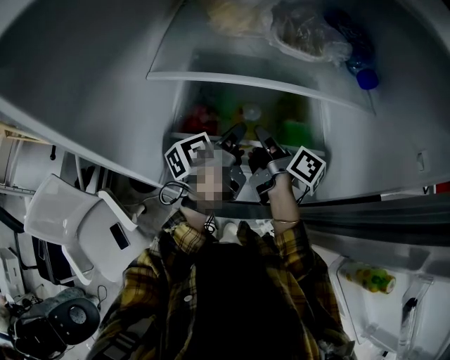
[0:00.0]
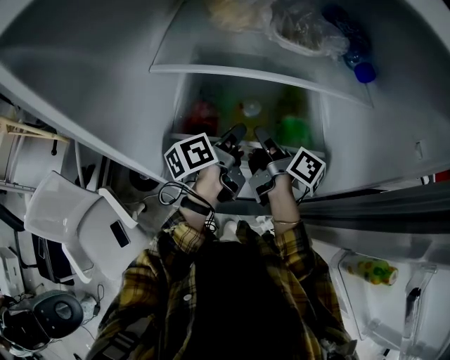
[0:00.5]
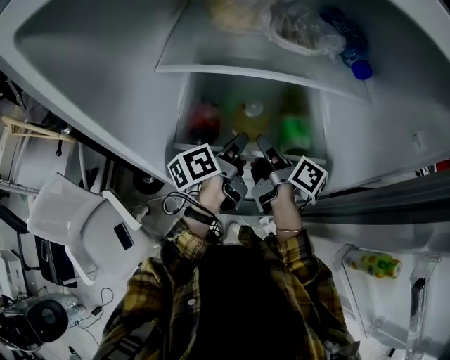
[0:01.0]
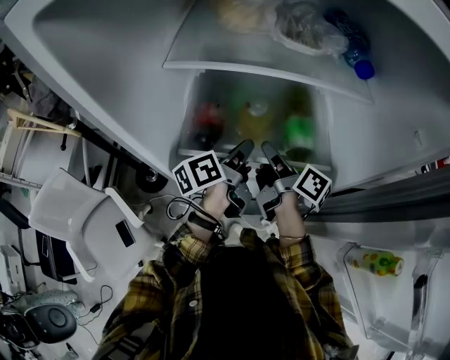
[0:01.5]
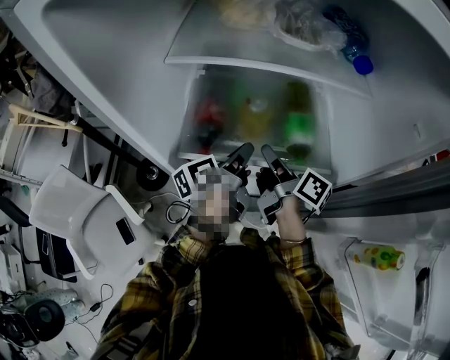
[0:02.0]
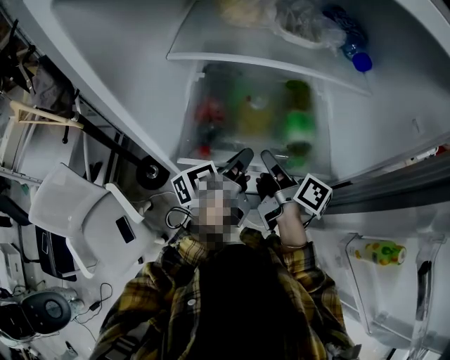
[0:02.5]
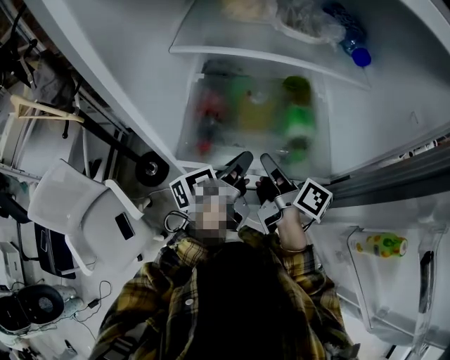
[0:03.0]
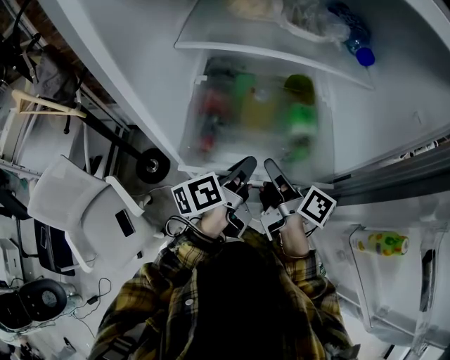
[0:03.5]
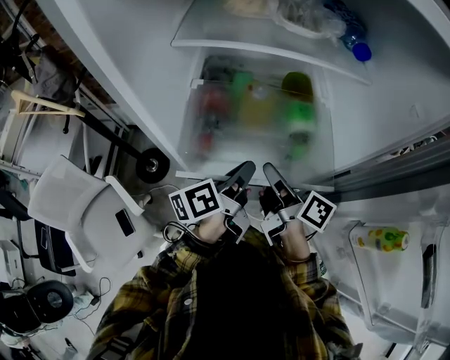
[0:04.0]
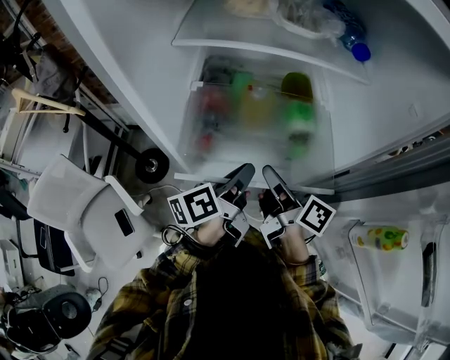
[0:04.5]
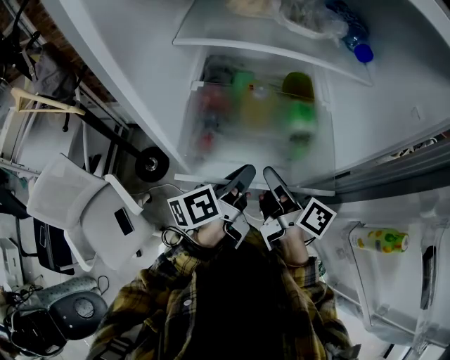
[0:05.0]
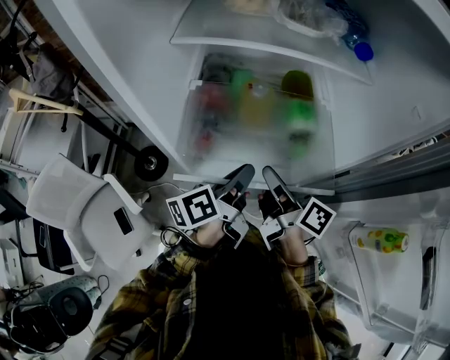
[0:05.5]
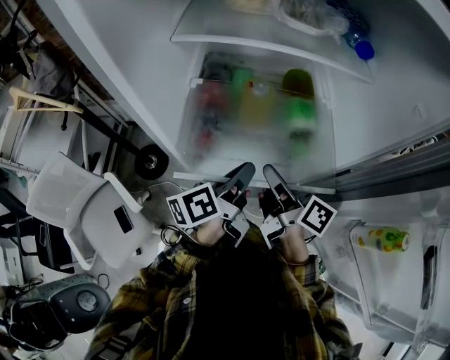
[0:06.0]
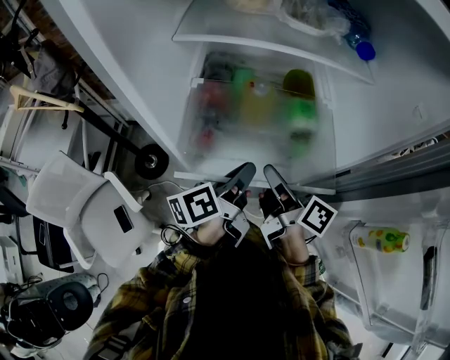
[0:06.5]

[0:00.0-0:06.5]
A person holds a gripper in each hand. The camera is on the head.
0:00.0 to 0:02.0: Both grippers move backward, roughly 10 cm.
0:02.0 to 0:04.5: The two grippers go about 10 cm backward.
0:04.5 to 0:06.5: Neither gripper changes place.

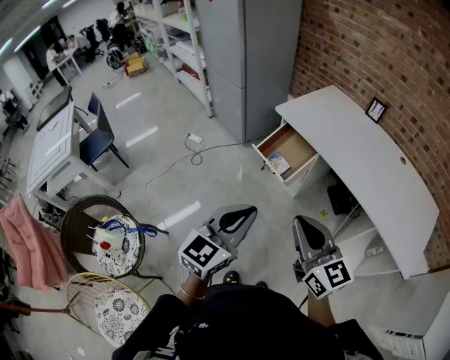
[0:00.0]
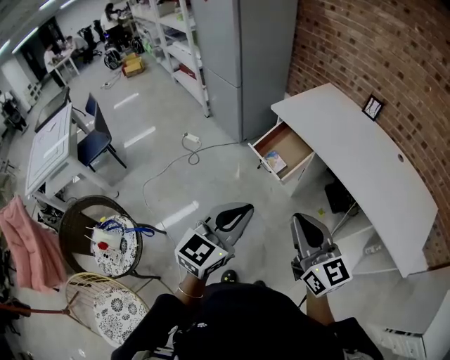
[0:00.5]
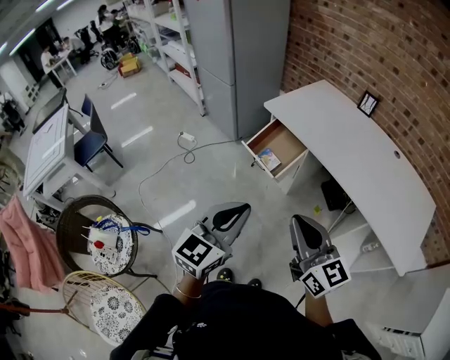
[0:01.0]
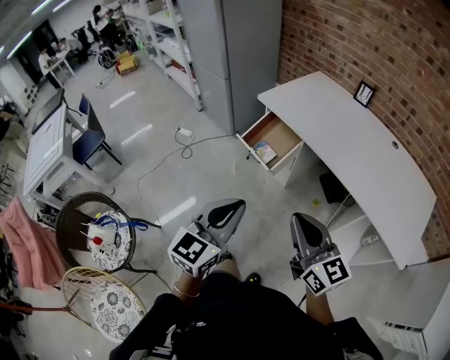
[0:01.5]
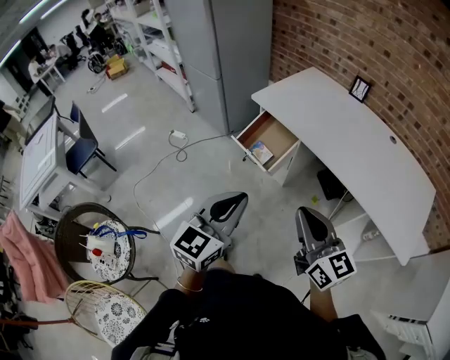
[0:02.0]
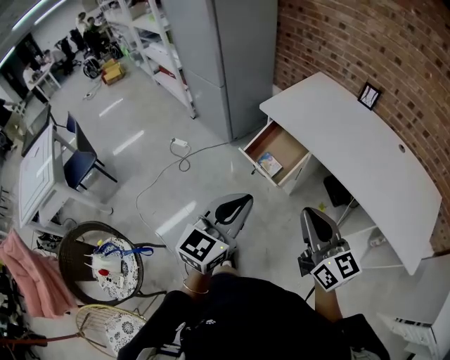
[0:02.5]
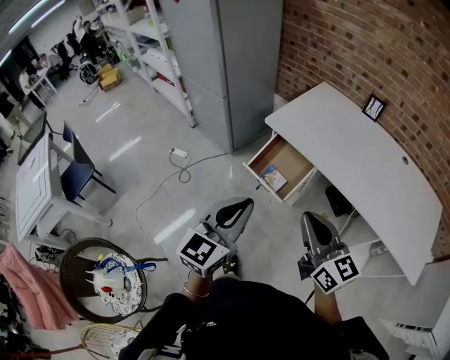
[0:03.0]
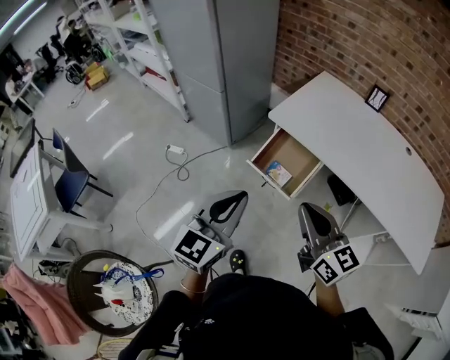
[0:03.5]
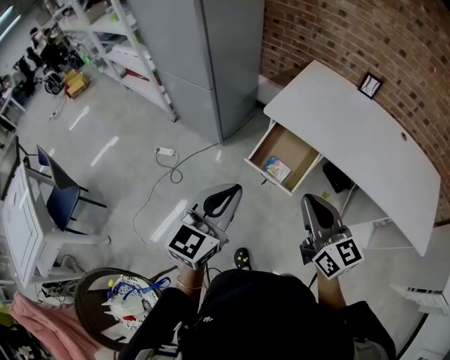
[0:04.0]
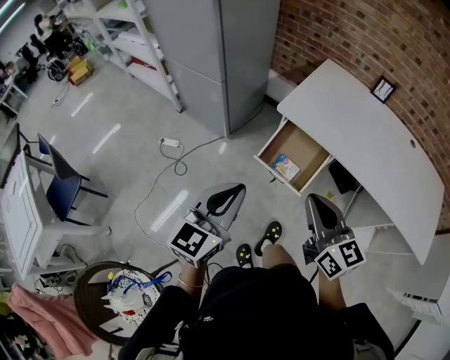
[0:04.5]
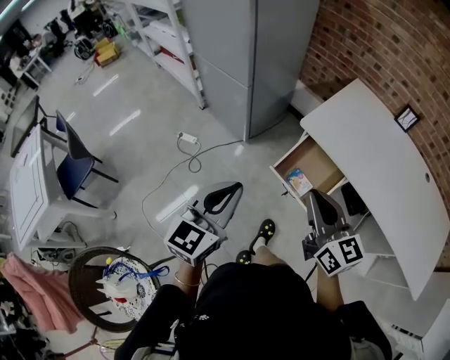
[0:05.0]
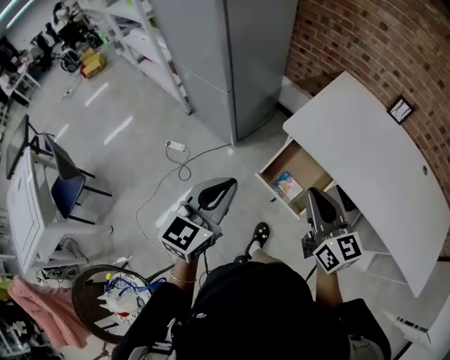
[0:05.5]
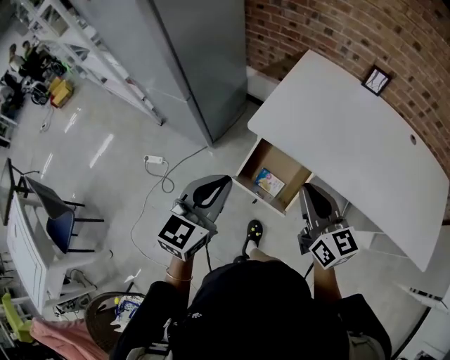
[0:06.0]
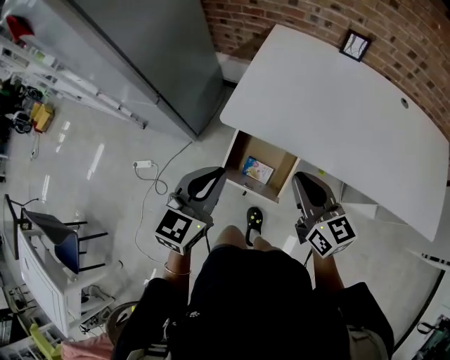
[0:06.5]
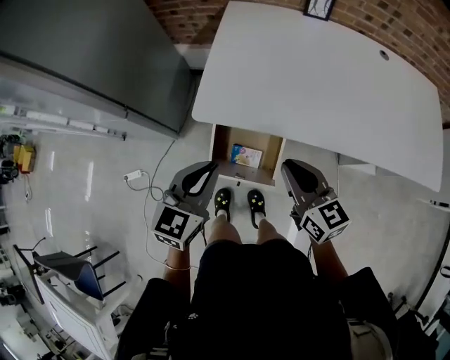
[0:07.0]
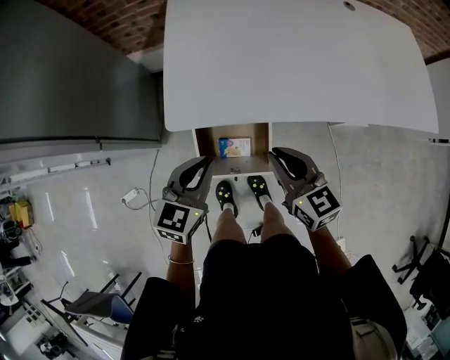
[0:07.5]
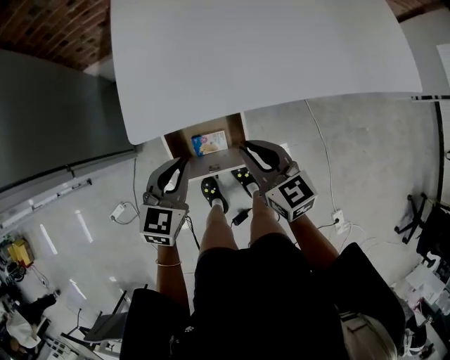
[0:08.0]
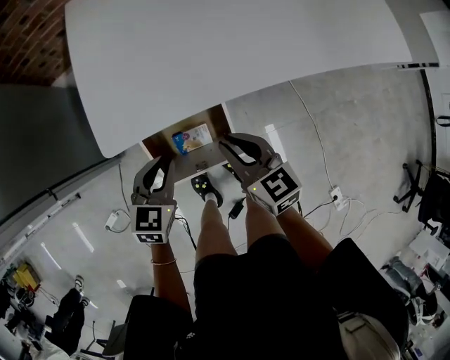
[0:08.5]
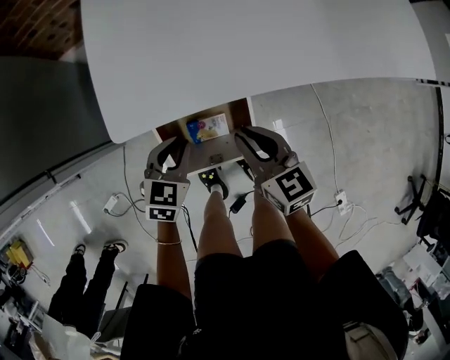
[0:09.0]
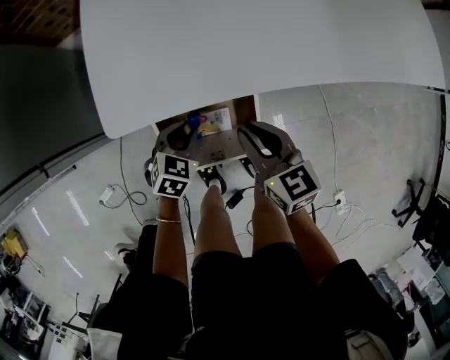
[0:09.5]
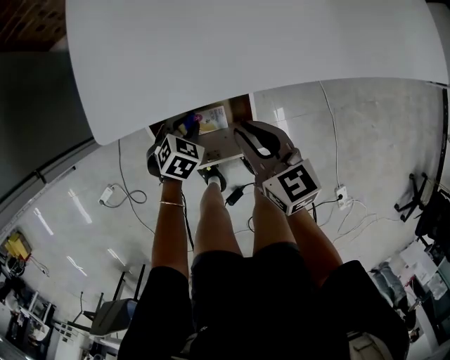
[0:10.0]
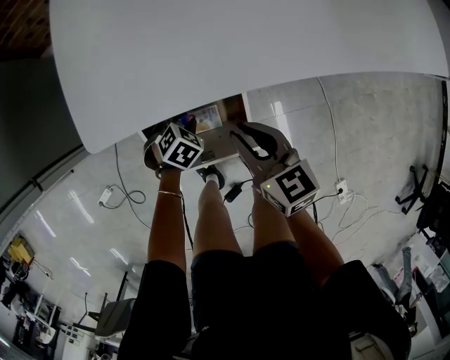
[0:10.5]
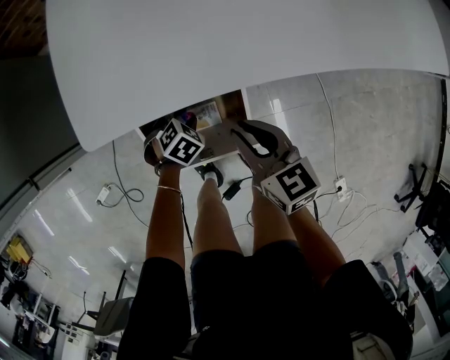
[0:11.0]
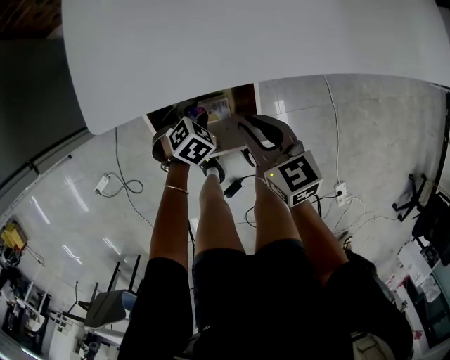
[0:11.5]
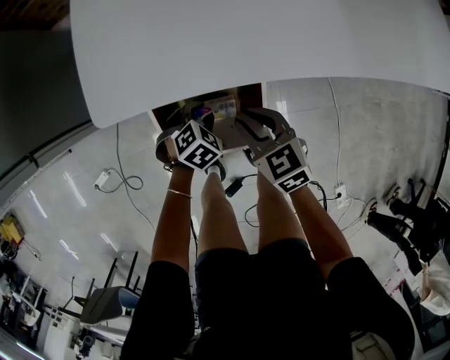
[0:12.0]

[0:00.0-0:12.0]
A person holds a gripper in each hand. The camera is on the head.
0:00.0 to 0:02.0: The right gripper travels to the right by some 10 cm, while the left gripper heads to the right, covering approximately 5 cm.
0:02.0 to 0:04.0: The two grippers go approximately 30 cm forward and to the left.
0:04.0 to 0:06.0: Both grippers travel together forward, roughly 20 cm.
0:06.0 to 0:08.0: The grippers both shift downward by about 20 cm. The left gripper rotates approximately 40 degrees. The right gripper turns by roughly 30 degrees.
0:08.0 to 0:10.0: The right gripper shifts roughly 10 cm downward; the left gripper is displaced downward by about 30 cm, and points its fingers some 30 degrees further downward.
0:10.0 to 0:12.0: The right gripper travels downward by some 5 cm, and swivels about 20 degrees.

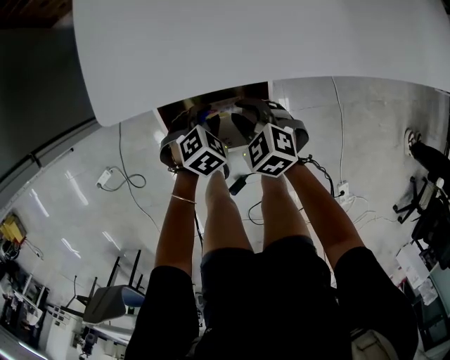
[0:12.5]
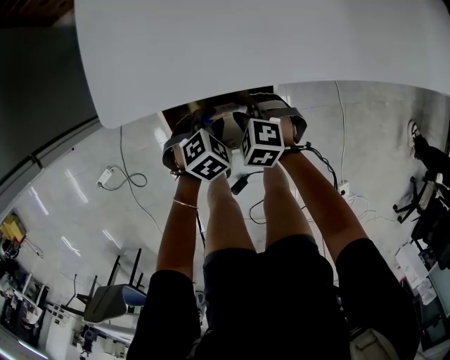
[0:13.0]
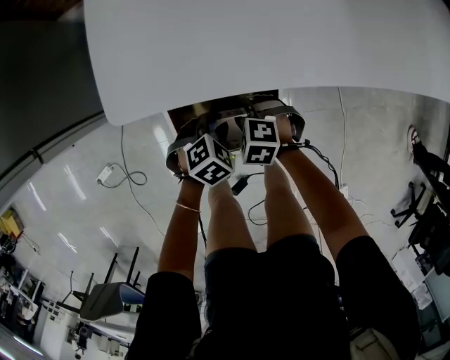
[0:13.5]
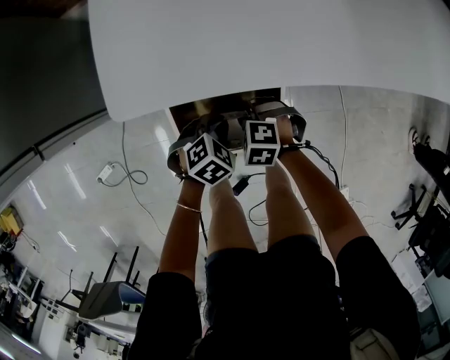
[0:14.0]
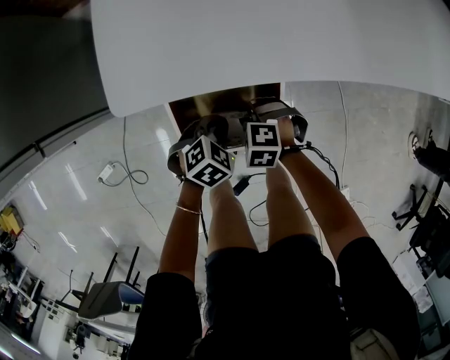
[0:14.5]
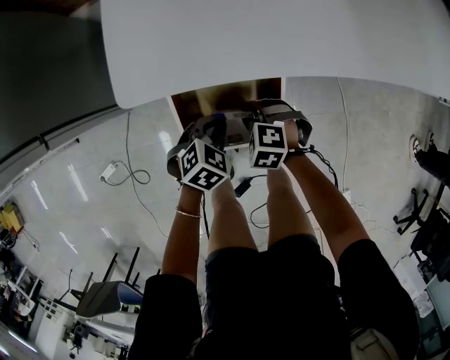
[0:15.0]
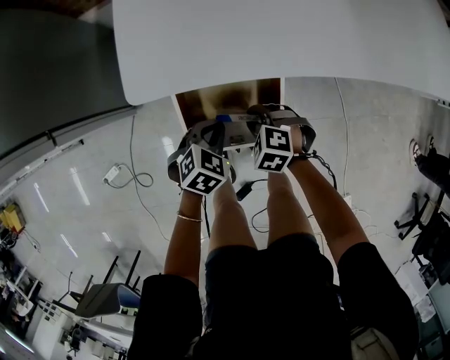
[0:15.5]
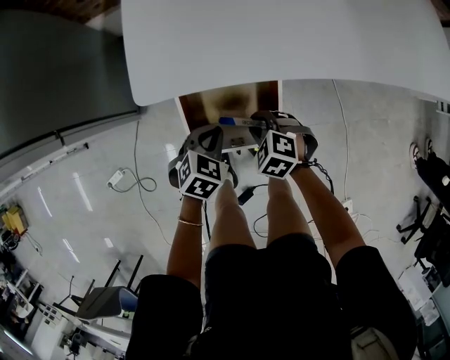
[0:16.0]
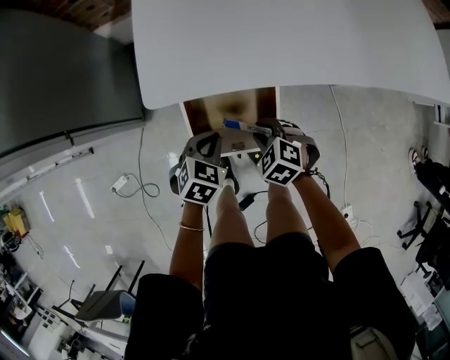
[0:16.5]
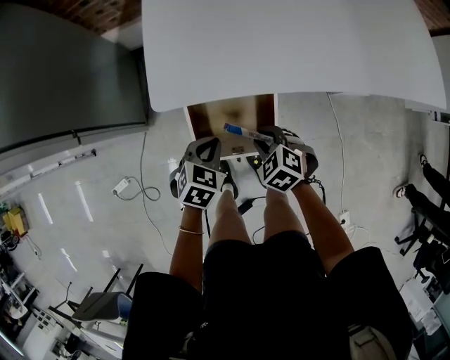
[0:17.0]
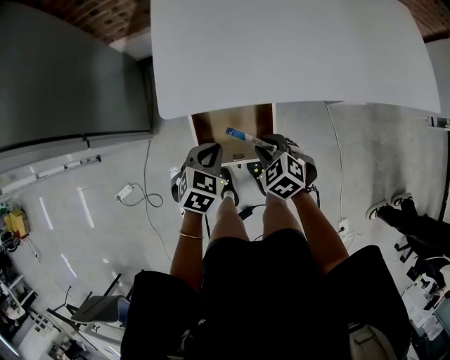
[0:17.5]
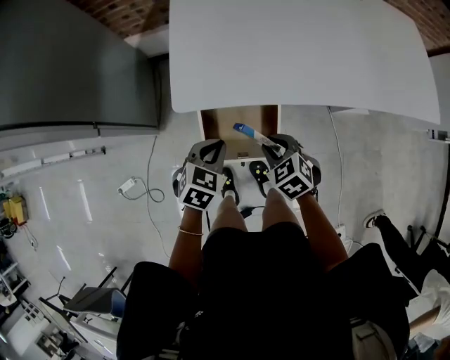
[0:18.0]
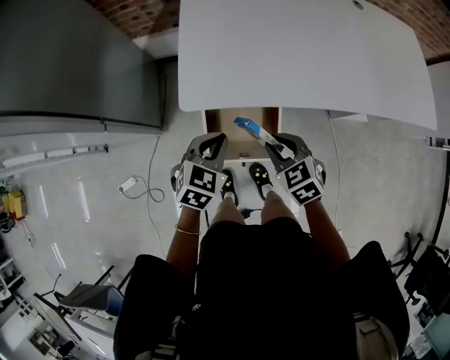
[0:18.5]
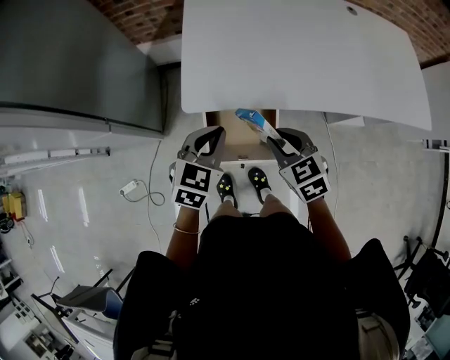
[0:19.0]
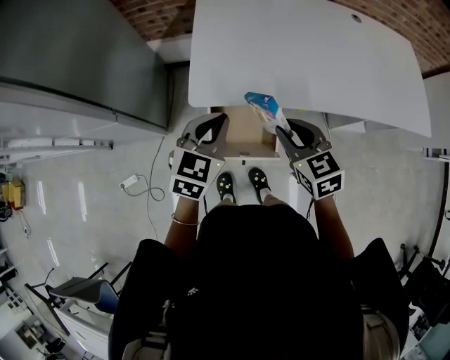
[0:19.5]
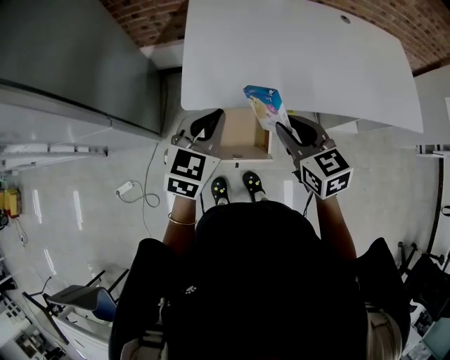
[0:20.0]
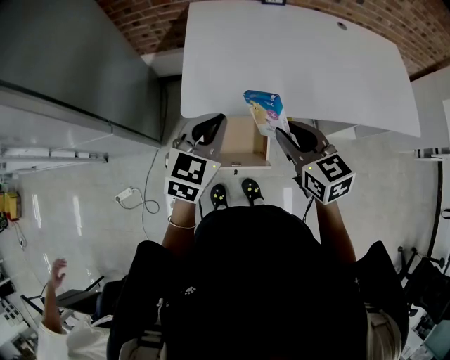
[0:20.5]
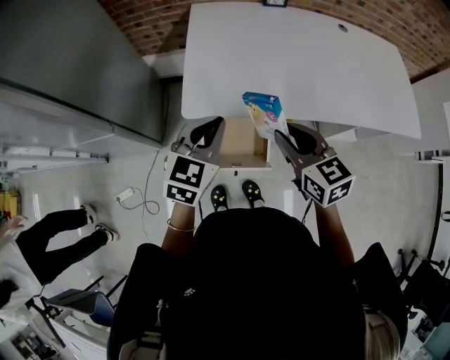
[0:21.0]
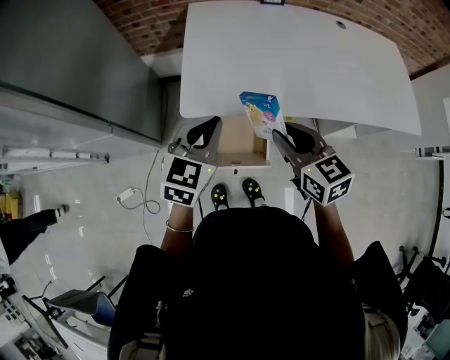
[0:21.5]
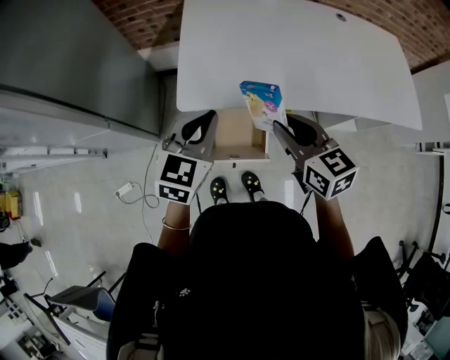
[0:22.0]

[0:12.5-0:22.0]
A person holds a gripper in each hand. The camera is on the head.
0:12.5 to 0:14.5: The right gripper shifts approximately 5 cm downward, and swivels roughly 30 degrees. Meanwhile the left gripper closes up.
0:14.5 to 0:16.5: Both grippers travel together upward, approximately 10 cm. The right gripper changes its angle by about 20 degrees.
0:16.5 to 0:18.0: Both grippers move upward, about 10 cm.
0:18.0 to 0:20.0: Both grippers move upward, approximately 20 cm. The right gripper rotates some 30 degrees, while the left gripper rotates about 20 degrees.
0:20.0 to 0:22.0: There are only small adjustments of the grippers.
